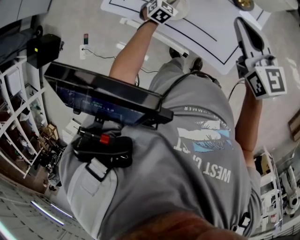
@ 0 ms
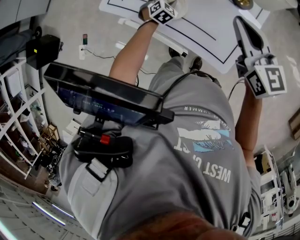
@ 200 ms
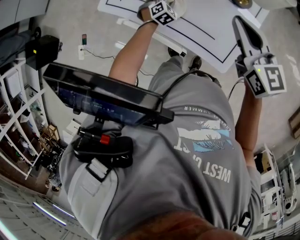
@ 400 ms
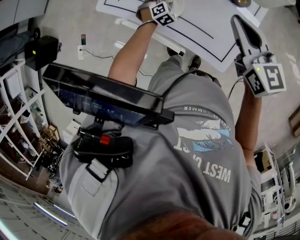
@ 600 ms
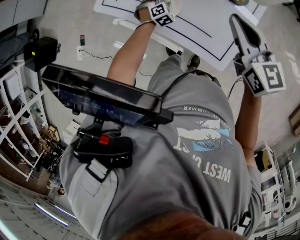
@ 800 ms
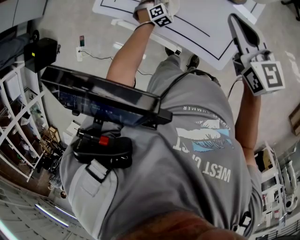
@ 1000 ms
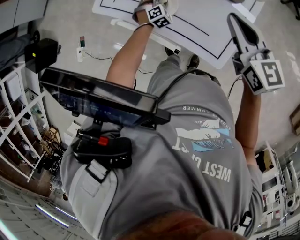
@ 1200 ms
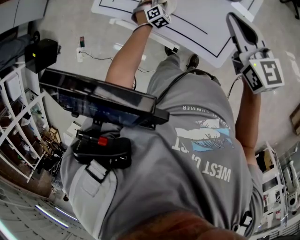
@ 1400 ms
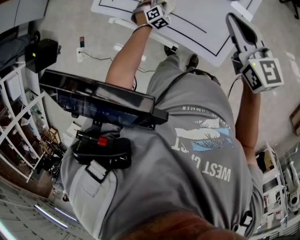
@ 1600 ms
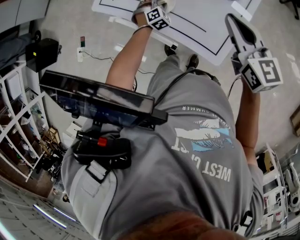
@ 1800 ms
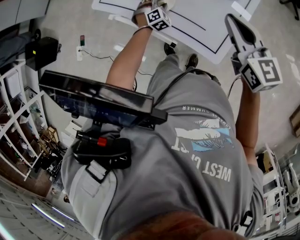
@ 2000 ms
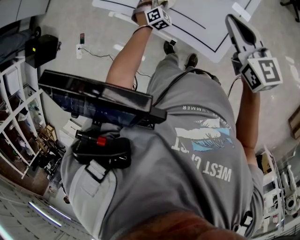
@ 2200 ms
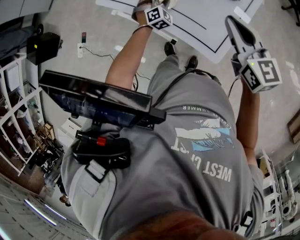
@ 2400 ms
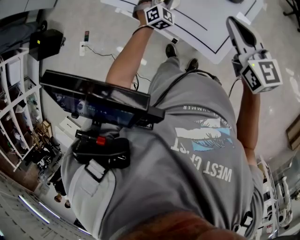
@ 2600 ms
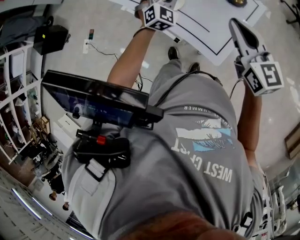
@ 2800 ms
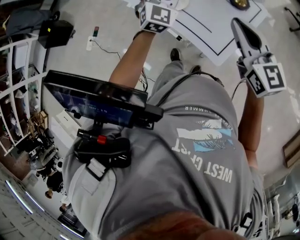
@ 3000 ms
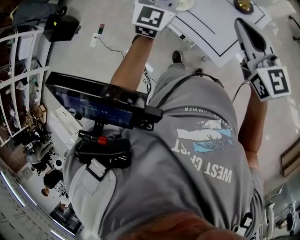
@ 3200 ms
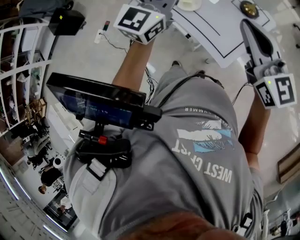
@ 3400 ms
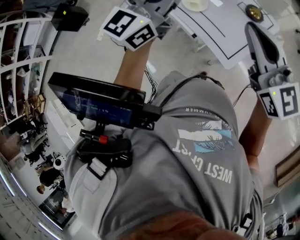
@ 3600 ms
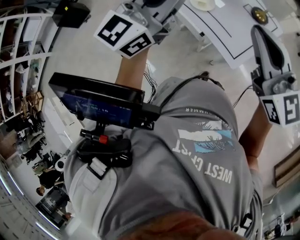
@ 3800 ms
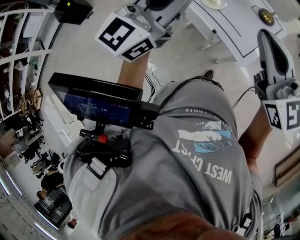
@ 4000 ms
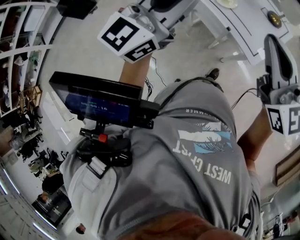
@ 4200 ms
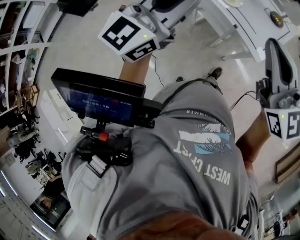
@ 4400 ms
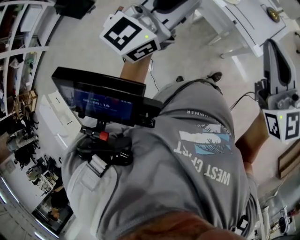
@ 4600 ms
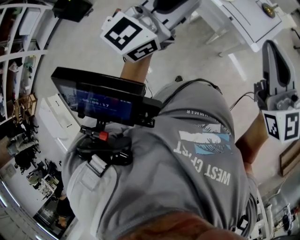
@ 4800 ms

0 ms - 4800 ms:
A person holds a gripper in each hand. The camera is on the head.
0 ms - 1600 ms: The left gripper travels downward by some 5 cm, and changes its angle by roughly 20 degrees.
1600 ms - 3200 ms: The right gripper heads backward and upward, covering some 15 cm, and turns by some 20 degrees, while the left gripper moves upward, about 40 cm, and points its fingers about 50 degrees further upward.
3200 ms - 4800 ms: The two grippers go roughly 40 cm backward and to the left. The left gripper turns by about 30 degrees.

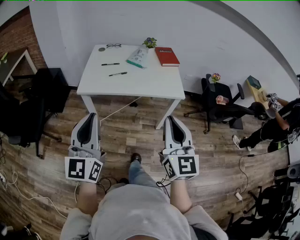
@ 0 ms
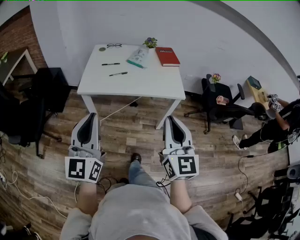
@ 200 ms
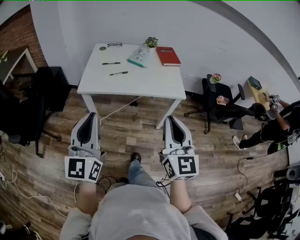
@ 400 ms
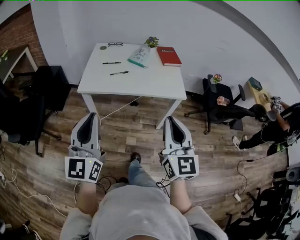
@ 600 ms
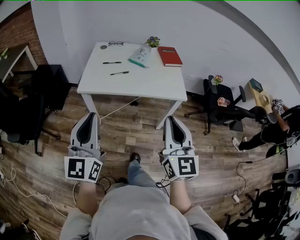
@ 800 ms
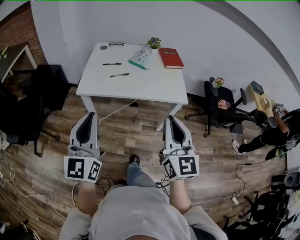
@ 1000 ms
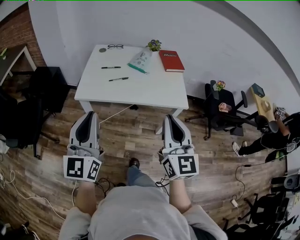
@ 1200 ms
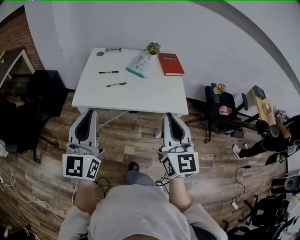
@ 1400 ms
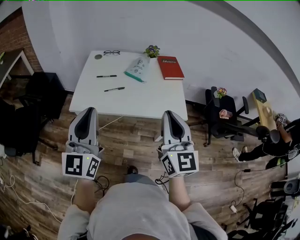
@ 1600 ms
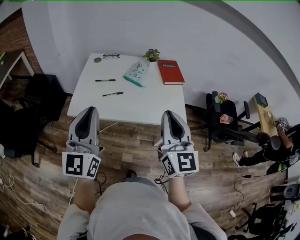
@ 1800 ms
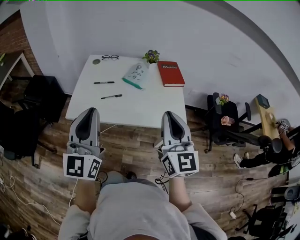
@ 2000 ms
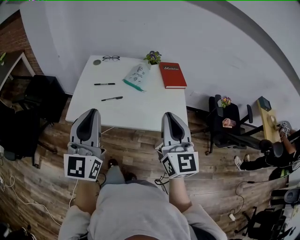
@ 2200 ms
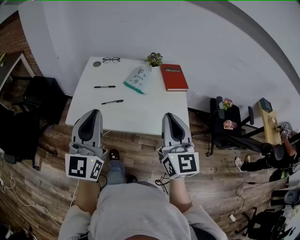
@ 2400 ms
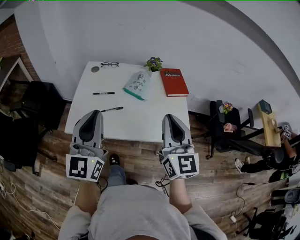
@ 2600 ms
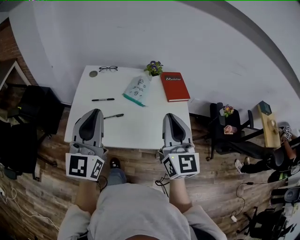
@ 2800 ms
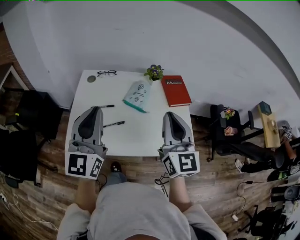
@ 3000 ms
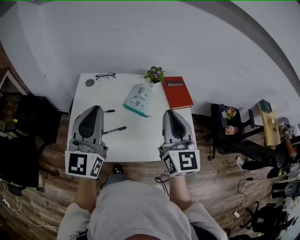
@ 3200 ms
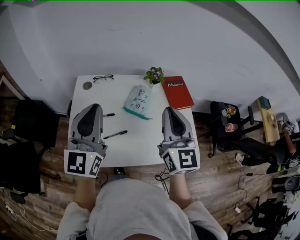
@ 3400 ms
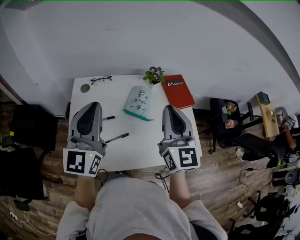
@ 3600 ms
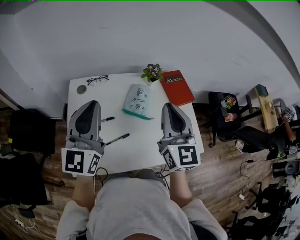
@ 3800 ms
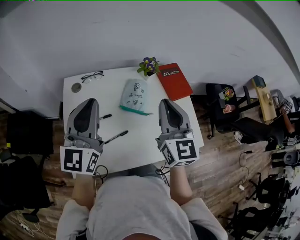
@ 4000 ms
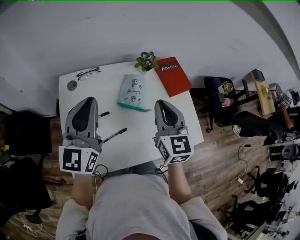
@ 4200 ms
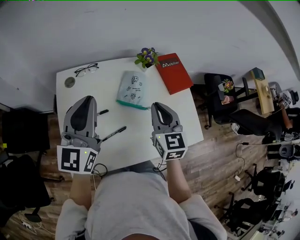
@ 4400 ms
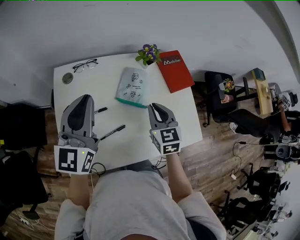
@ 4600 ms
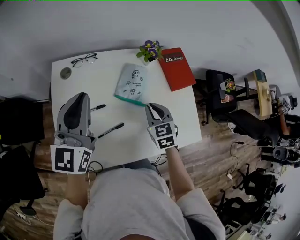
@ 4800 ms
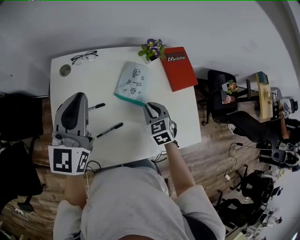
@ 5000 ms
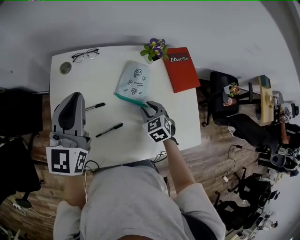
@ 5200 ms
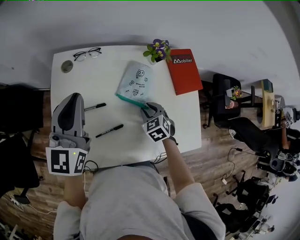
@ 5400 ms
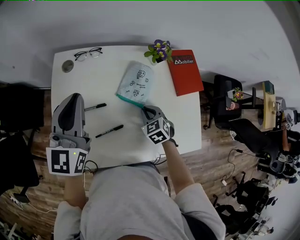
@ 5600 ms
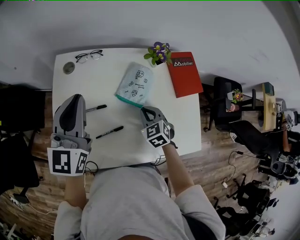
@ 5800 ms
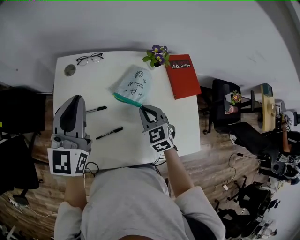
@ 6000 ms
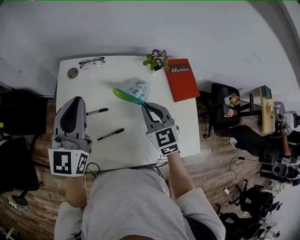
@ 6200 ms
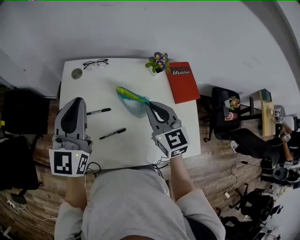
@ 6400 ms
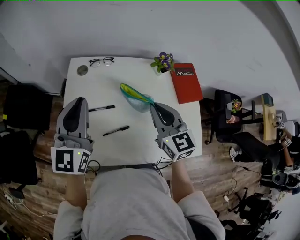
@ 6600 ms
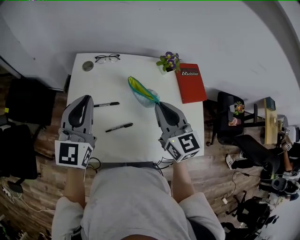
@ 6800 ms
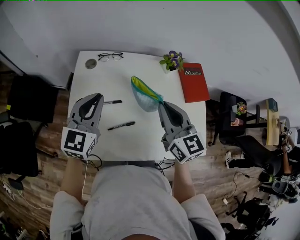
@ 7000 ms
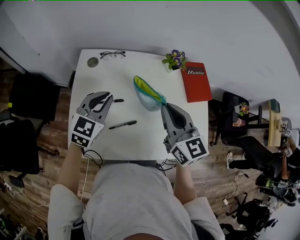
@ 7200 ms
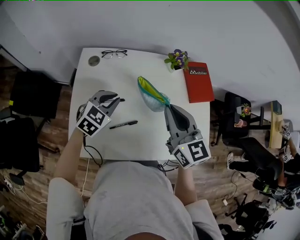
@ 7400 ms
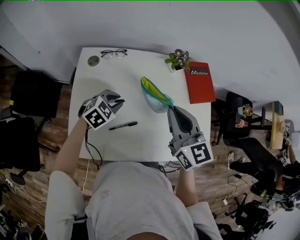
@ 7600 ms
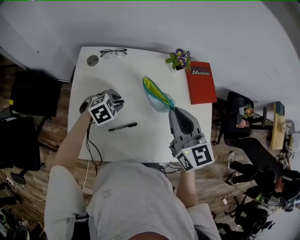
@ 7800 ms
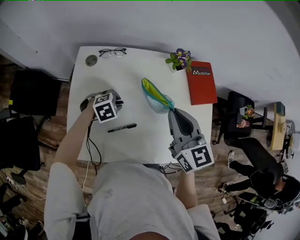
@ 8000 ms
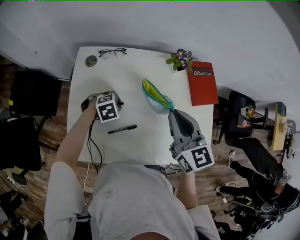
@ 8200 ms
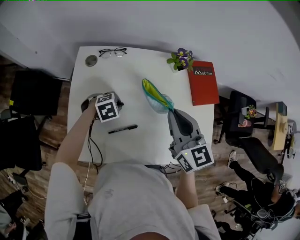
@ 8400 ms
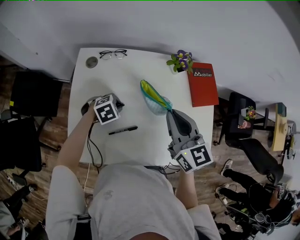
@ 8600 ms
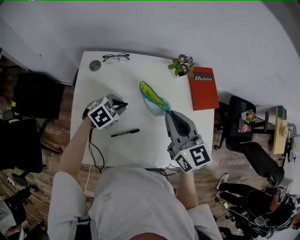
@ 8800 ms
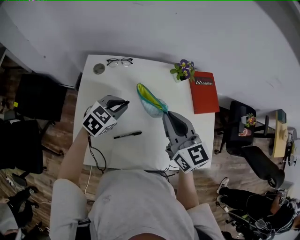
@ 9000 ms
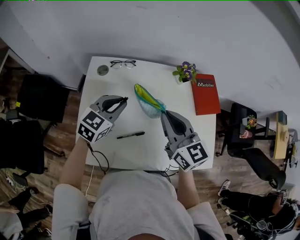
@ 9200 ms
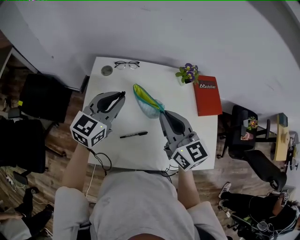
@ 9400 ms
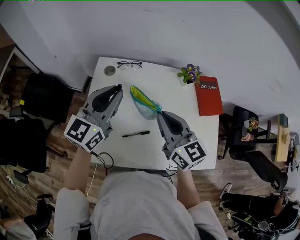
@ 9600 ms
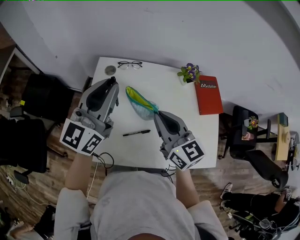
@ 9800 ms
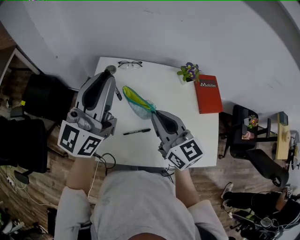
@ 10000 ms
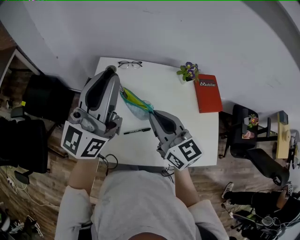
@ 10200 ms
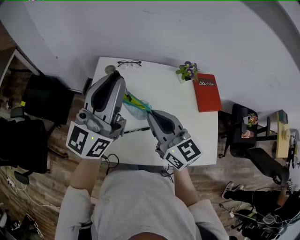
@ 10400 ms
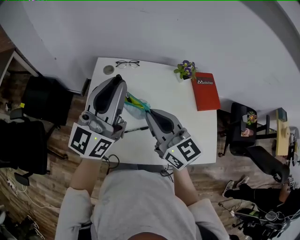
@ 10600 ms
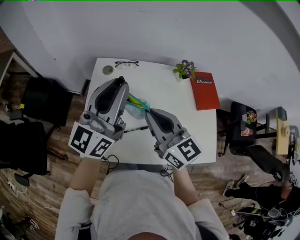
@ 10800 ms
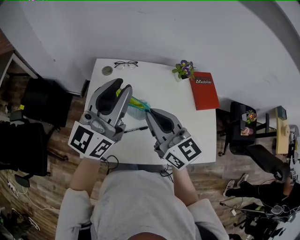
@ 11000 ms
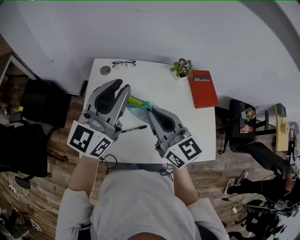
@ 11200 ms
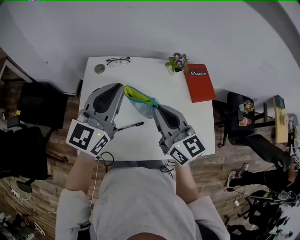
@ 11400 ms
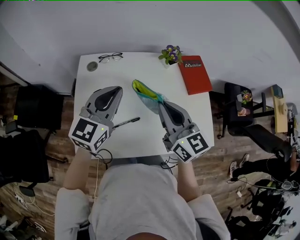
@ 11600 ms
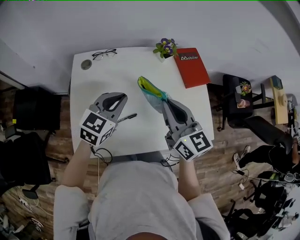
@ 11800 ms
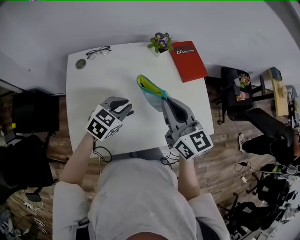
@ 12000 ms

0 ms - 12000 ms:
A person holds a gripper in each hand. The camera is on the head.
0 ms - 1600 ms: Both grippers move forward, some 20 cm.
1600 ms - 3000 ms: The two grippers go roughly 25 cm forward.
3000 ms - 4400 ms: The left gripper is displaced forward by approximately 20 cm. The right gripper goes some 20 cm forward and downward, and swivels roughly 30 degrees.
4400 ms - 6000 ms: The right gripper shifts approximately 15 cm downward, and changes its angle by about 30 degrees.
6000 ms - 7600 ms: The right gripper goes roughly 15 cm upward, and rotates about 30 degrees, while the left gripper shifts some 20 cm downward, and angles its fingers downward, by roughly 50 degrees.
7600 ms - 9000 ms: The left gripper moves about 10 cm downward and comes back.
9000 ms - 10400 ms: The left gripper goes about 30 cm upward, and tilts its fingers about 60 degrees upward, while the right gripper heads to the left and backward, covering roughly 10 cm.
10400 ms - 12000 ms: The left gripper goes approximately 30 cm downward, and points its fingers approximately 60 degrees further downward, while the right gripper moves some 15 cm, and changes its angle by about 20 degrees.

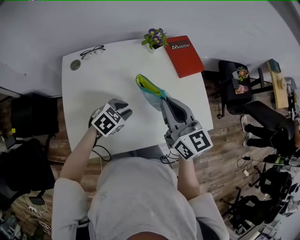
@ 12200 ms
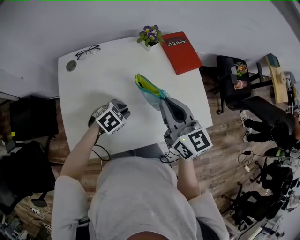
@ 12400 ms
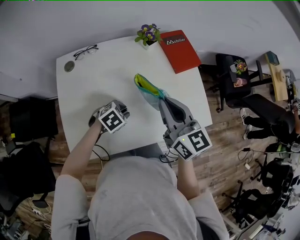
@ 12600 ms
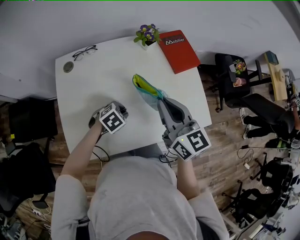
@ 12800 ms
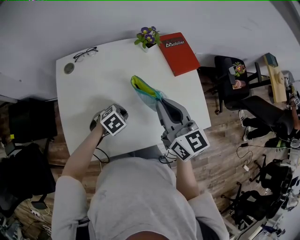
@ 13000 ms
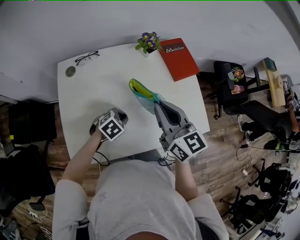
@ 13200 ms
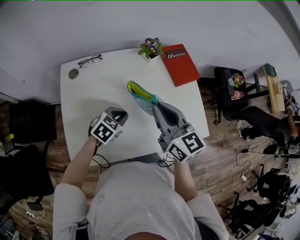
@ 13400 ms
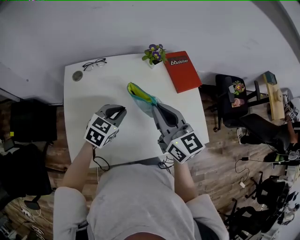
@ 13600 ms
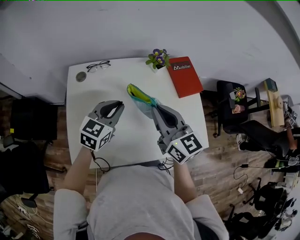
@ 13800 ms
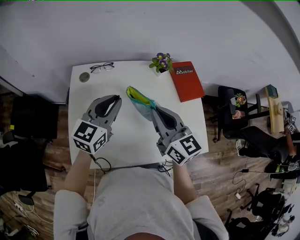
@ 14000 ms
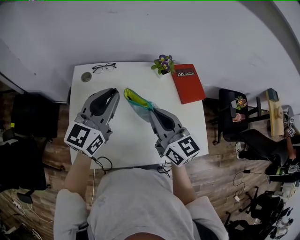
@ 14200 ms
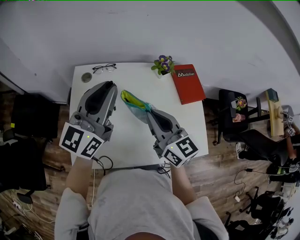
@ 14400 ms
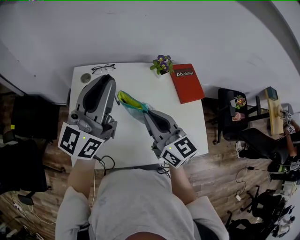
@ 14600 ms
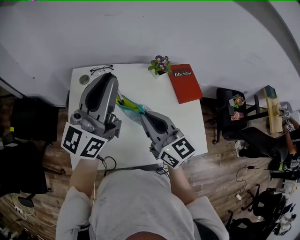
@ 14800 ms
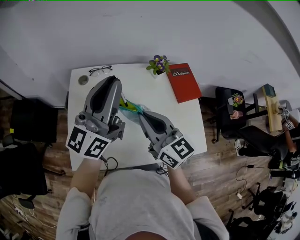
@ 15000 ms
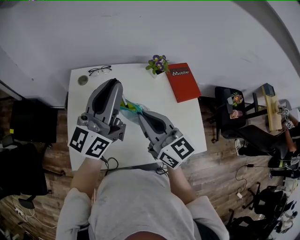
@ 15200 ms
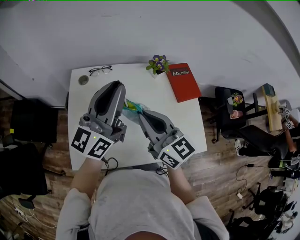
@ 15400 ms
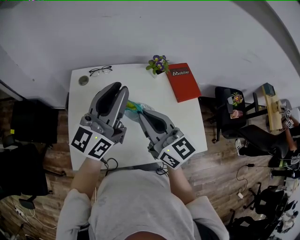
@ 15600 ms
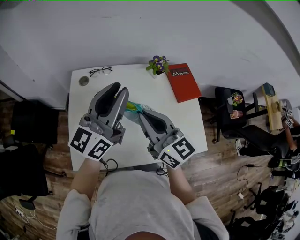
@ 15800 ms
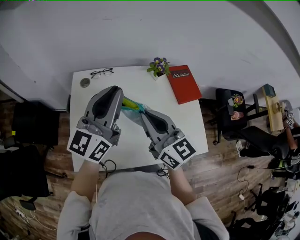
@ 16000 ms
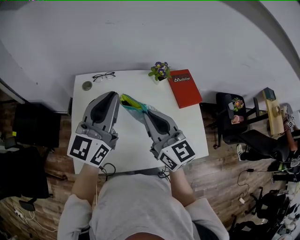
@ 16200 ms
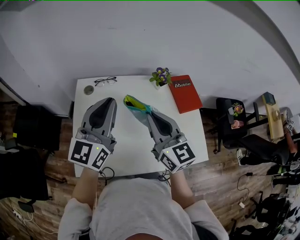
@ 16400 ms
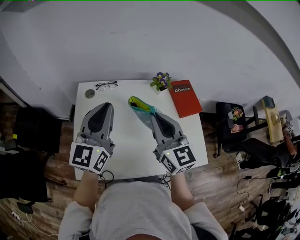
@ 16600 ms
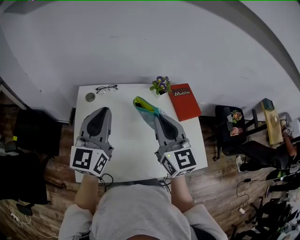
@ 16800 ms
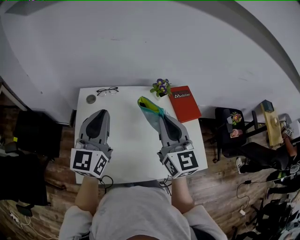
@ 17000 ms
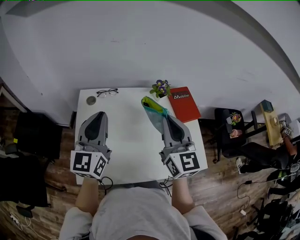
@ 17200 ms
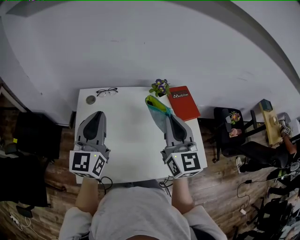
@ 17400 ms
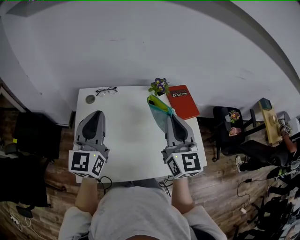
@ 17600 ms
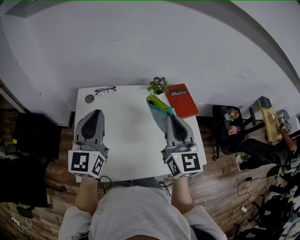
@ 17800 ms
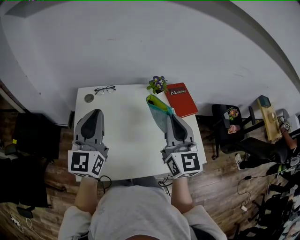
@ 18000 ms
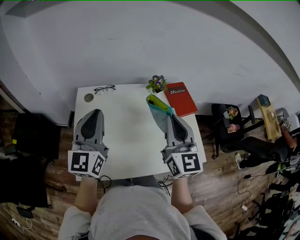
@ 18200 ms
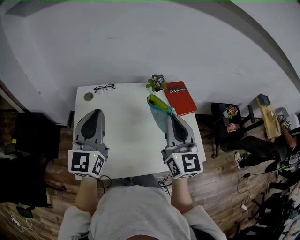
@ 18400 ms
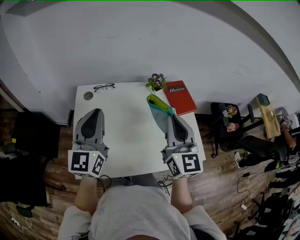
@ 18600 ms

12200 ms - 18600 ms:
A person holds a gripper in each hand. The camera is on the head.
12200 ms - 13800 ms: The left gripper heads upward and to the left, covering approximately 15 cm, and turns by some 40 degrees, while the right gripper ends up approximately 5 cm from where it was.
13800 ms - 15400 ms: The right gripper moves to the left, approximately 5 cm; the left gripper travels upward by roughly 20 cm, and angles its fingers upward, by approximately 40 degrees.
15400 ms - 17000 ms: The left gripper goes some 5 cm to the left, and changes its angle by roughly 30 degrees; the right gripper changes place by about 5 cm, and changes its angle by some 20 degrees.
17000 ms - 18600 ms: The right gripper shifts by about 5 cm.
